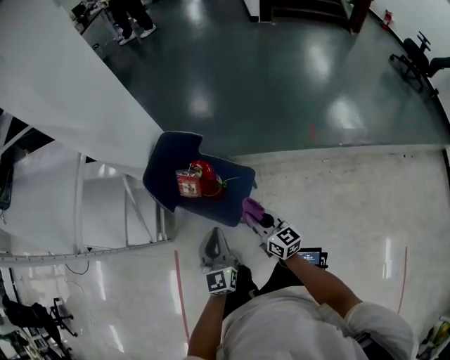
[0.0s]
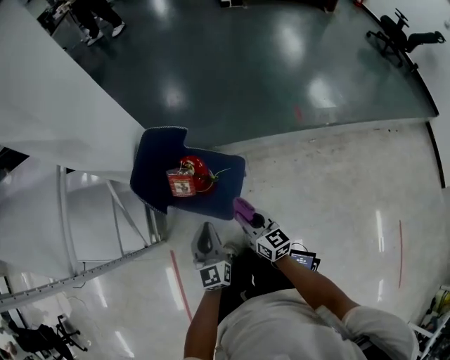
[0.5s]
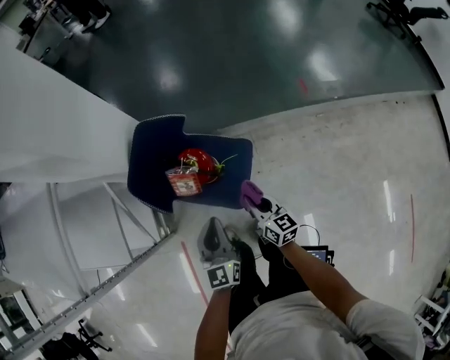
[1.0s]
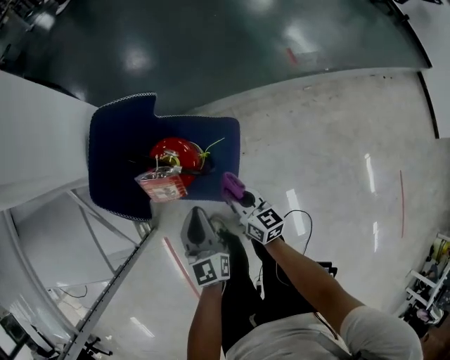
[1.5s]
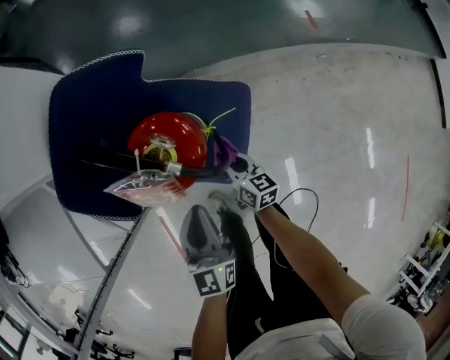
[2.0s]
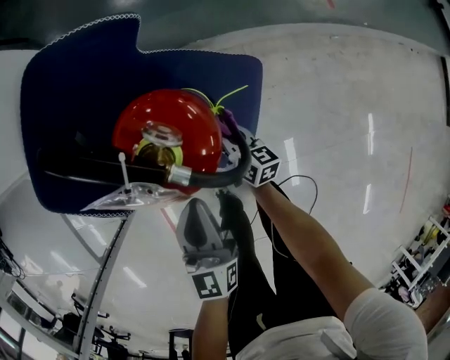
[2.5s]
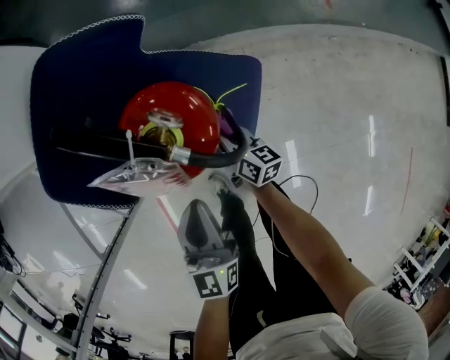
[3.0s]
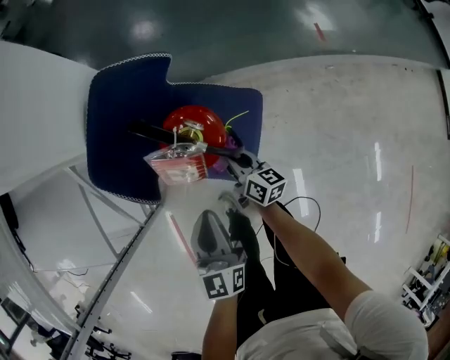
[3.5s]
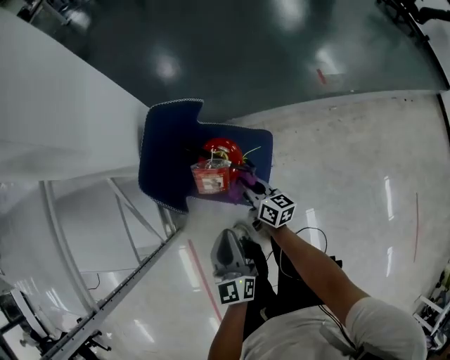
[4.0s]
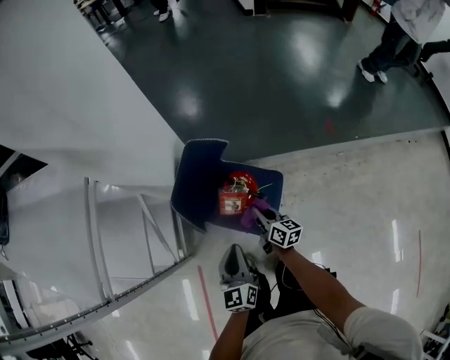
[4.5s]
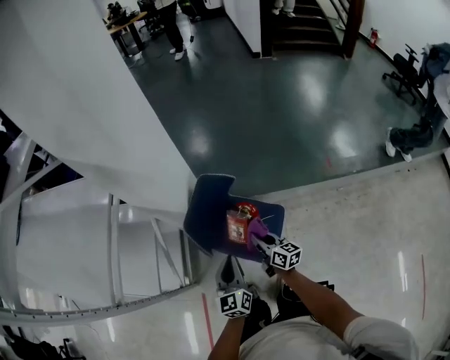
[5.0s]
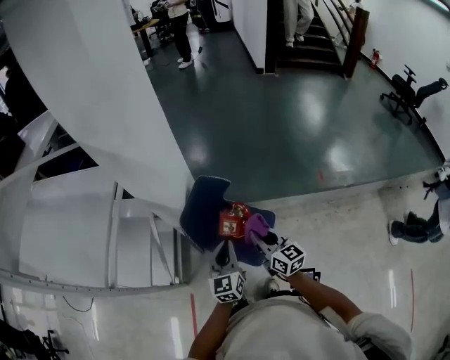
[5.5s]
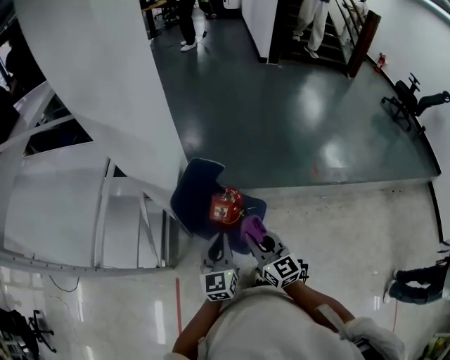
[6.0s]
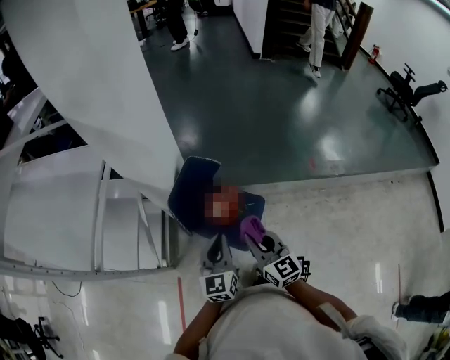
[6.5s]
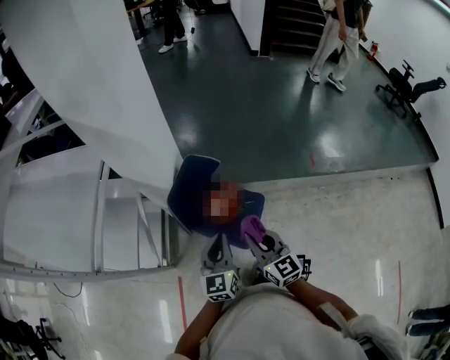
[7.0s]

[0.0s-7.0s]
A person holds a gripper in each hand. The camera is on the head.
0.0s to 2.0s: The right gripper heads downward, covering about 35 cm, and changes its angle by some 30 degrees. Meanwhile the left gripper goes some 25 cm downward and forward.
2.0s to 3.5s: The grippers both shift upward by approximately 5 cm.
3.5s to 5.0s: The grippers both shift upward by approximately 20 cm.
5.0s to 7.0s: The right gripper heads upward and backward, covering some 20 cm, and rotates some 30 degrees, while the left gripper heads upward, covering roughly 10 cm.

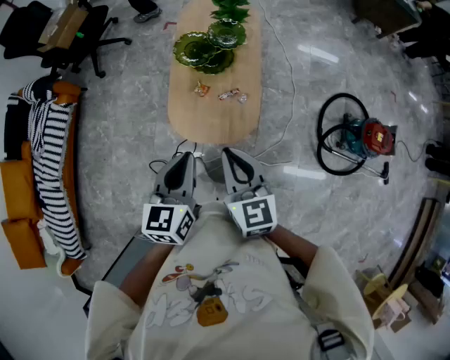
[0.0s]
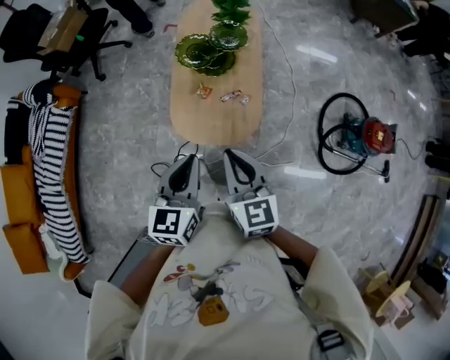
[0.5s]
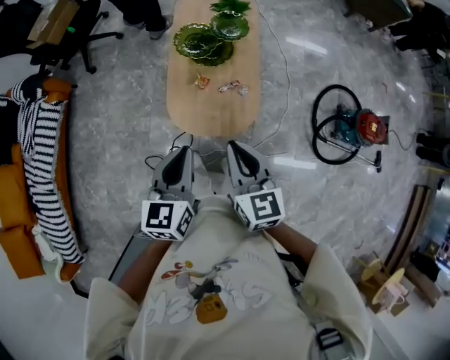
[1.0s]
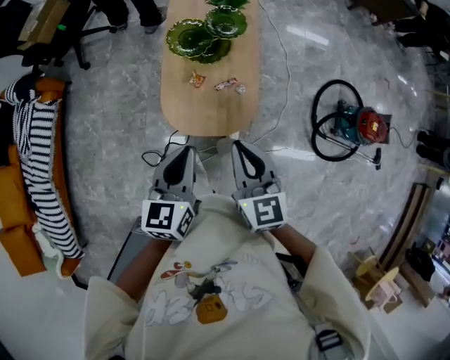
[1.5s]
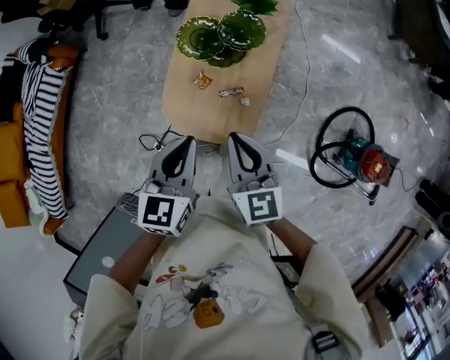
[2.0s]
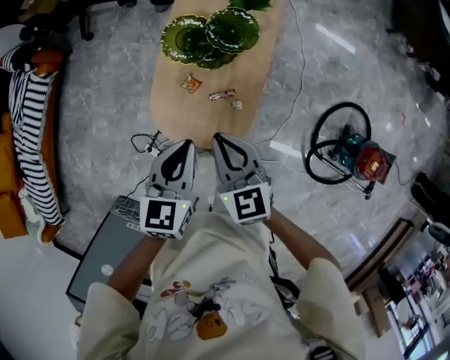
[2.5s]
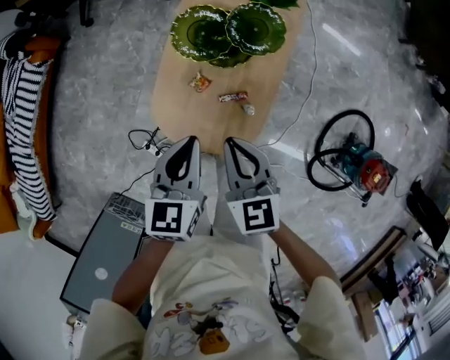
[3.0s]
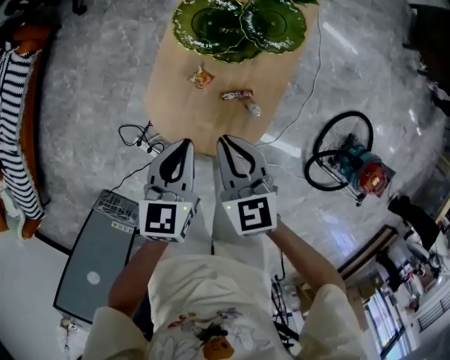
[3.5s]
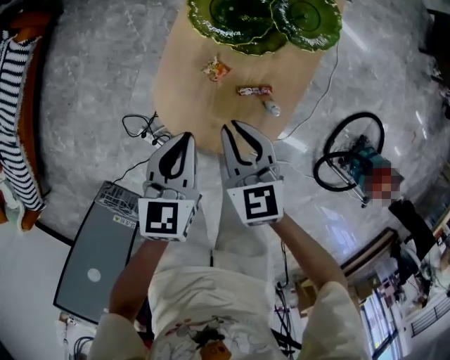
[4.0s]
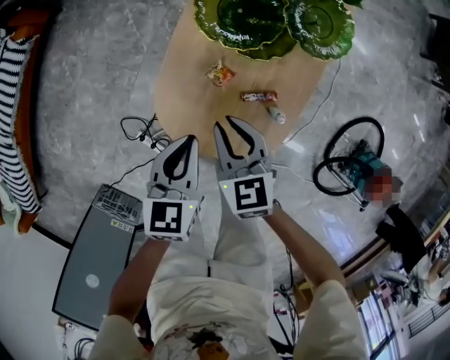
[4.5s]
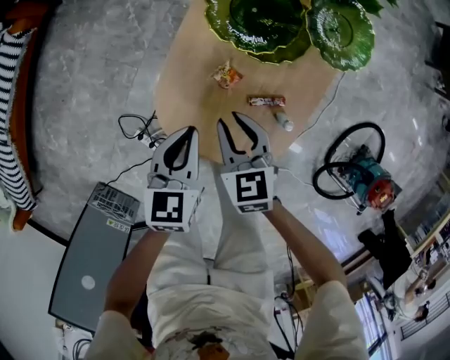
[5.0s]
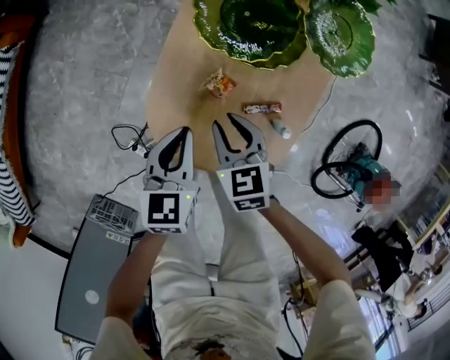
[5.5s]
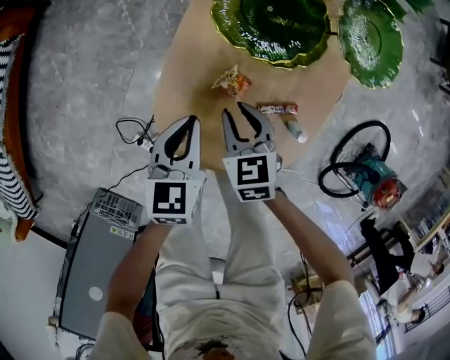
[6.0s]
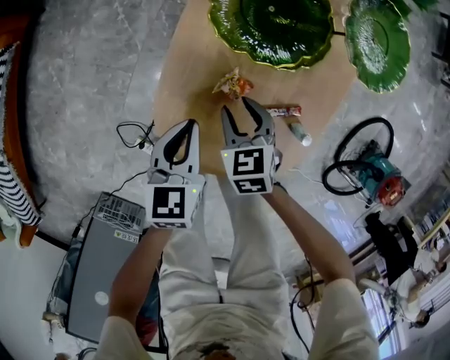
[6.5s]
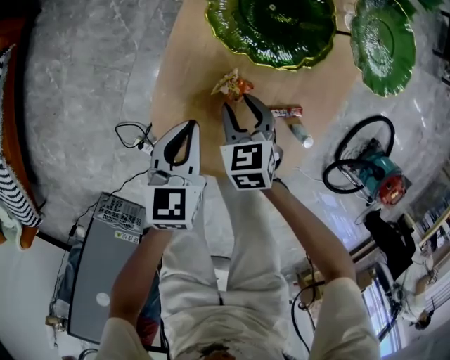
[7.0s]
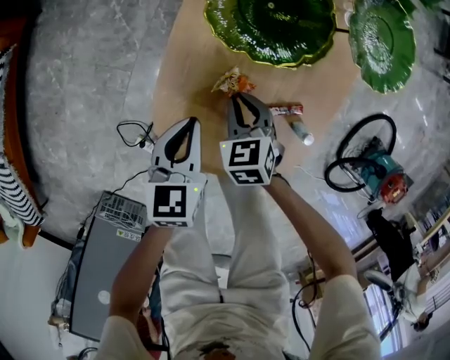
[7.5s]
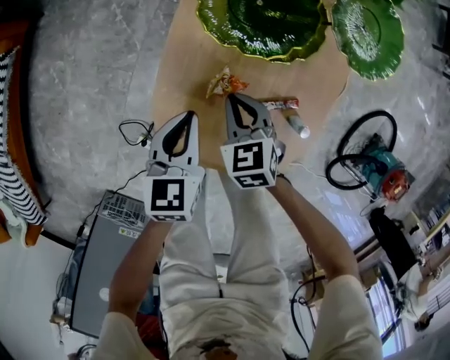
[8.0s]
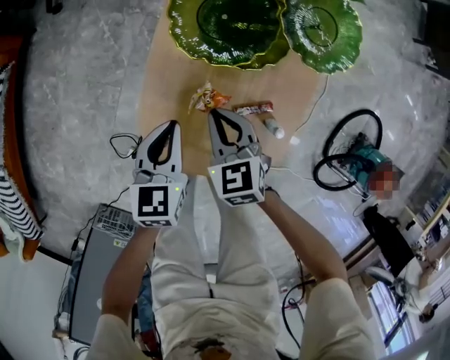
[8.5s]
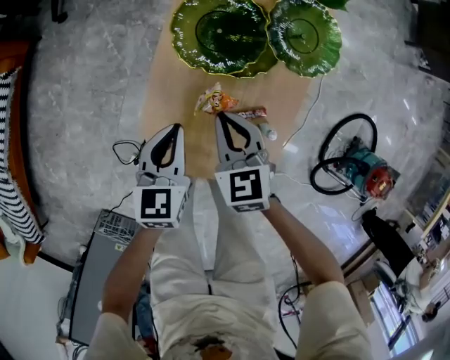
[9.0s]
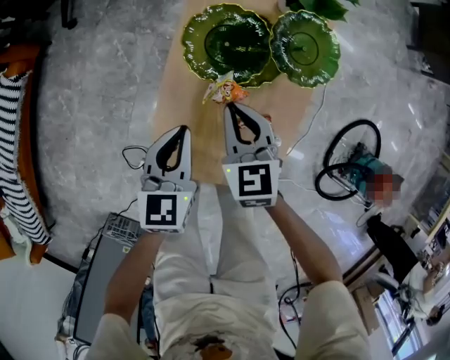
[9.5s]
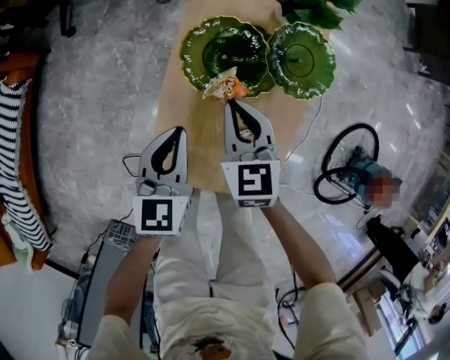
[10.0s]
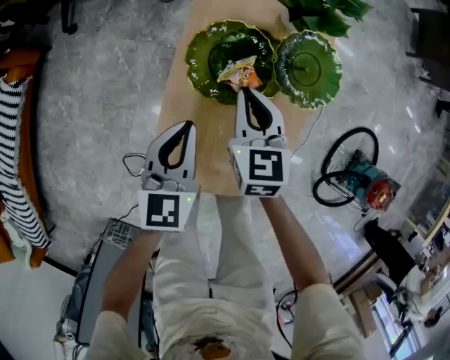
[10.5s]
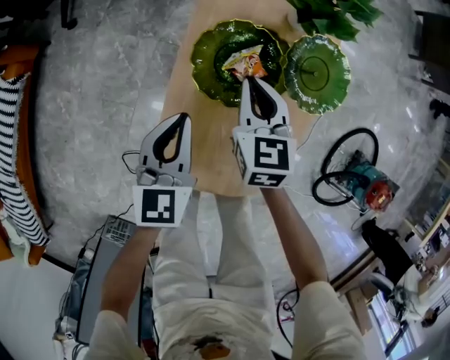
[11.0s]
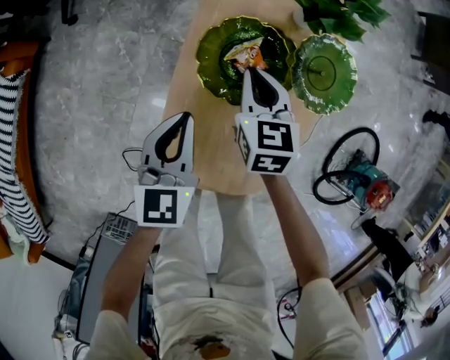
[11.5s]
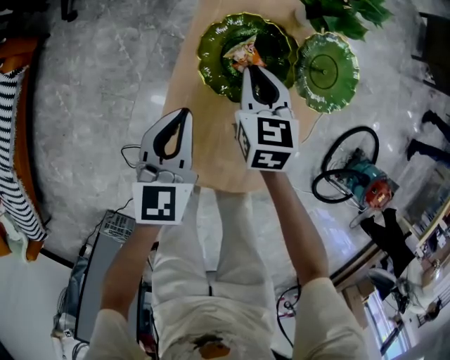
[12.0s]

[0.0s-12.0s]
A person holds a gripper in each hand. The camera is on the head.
0.0s to 2.0s: The grippers both shift forward by about 15 cm.
2.0s to 4.0s: Both grippers travel together downward, about 25 cm. The right gripper changes its angle by about 20 degrees.
4.0s to 6.0s: Both grippers move downward, approximately 20 cm.
8.0s to 10.0s: Both grippers travel together upward and forward, approximately 20 cm. The right gripper swivels roughly 20 degrees.
10.0s to 12.0s: The left gripper ends up roughly 5 cm from where it was, while the right gripper shifts some 10 cm forward and downward.

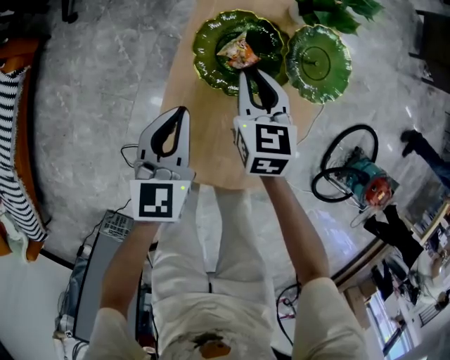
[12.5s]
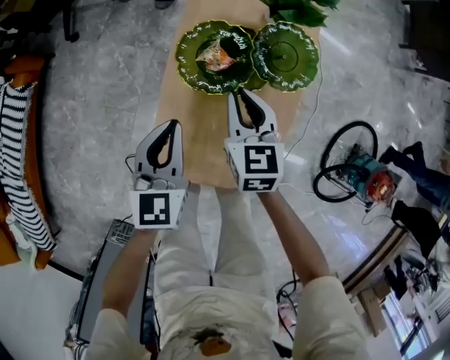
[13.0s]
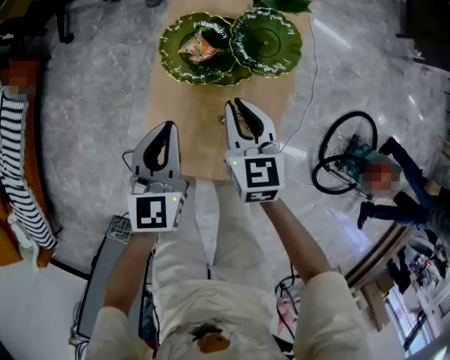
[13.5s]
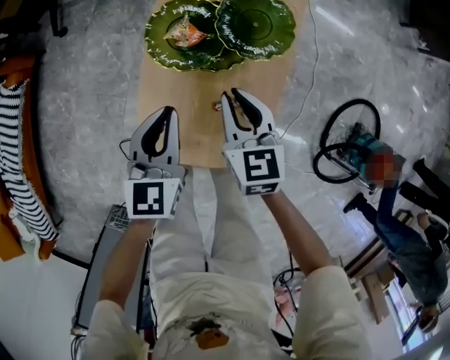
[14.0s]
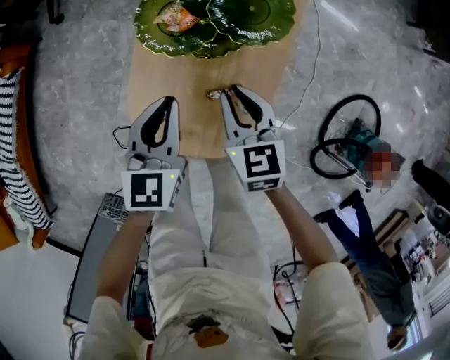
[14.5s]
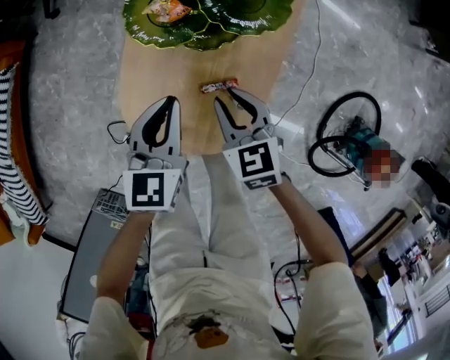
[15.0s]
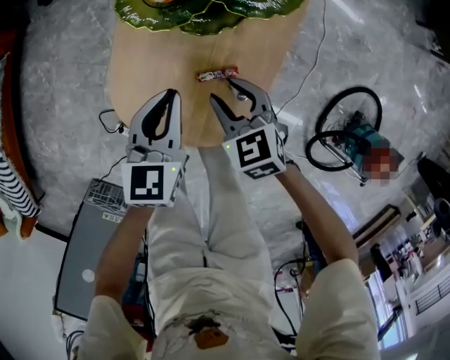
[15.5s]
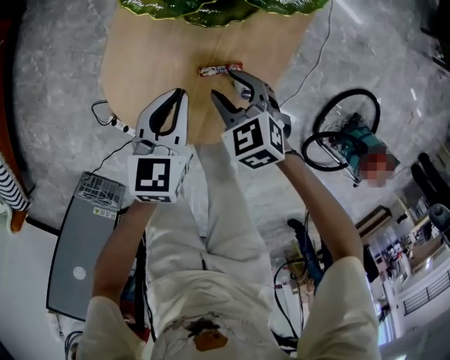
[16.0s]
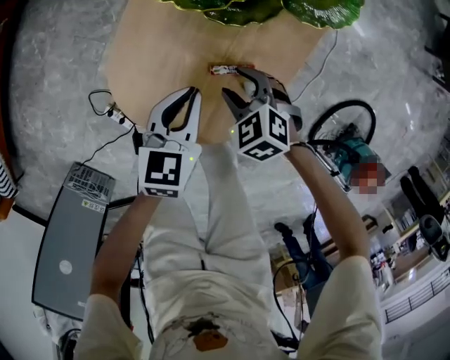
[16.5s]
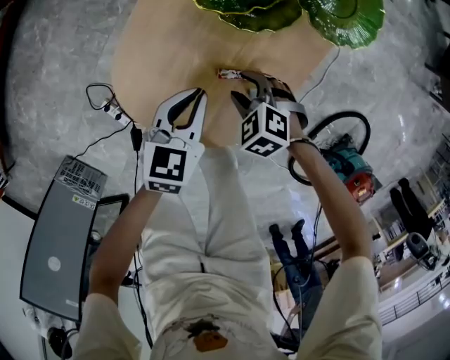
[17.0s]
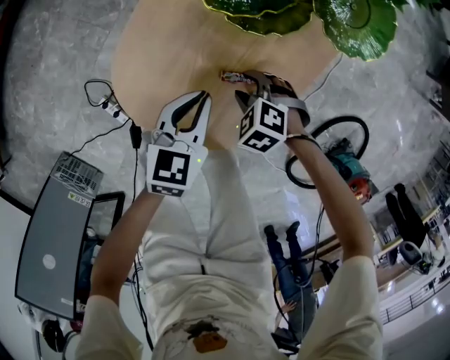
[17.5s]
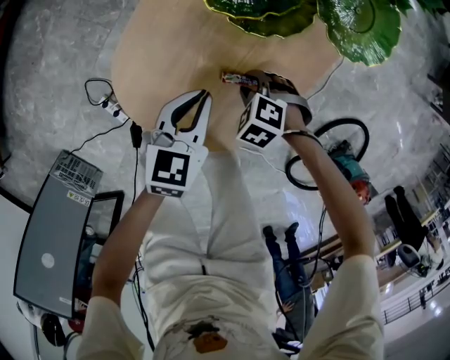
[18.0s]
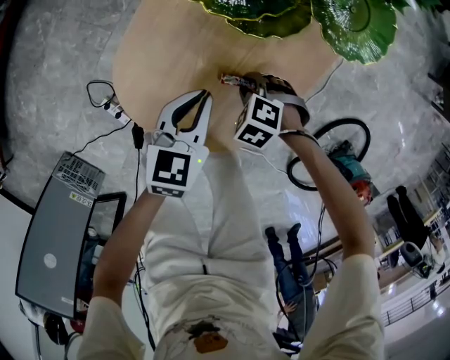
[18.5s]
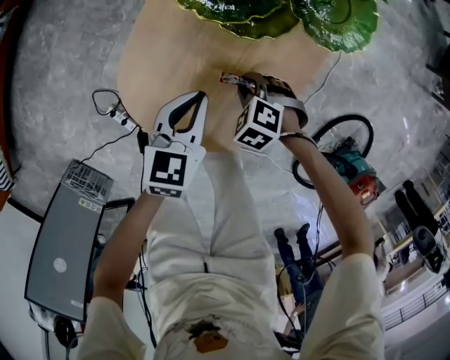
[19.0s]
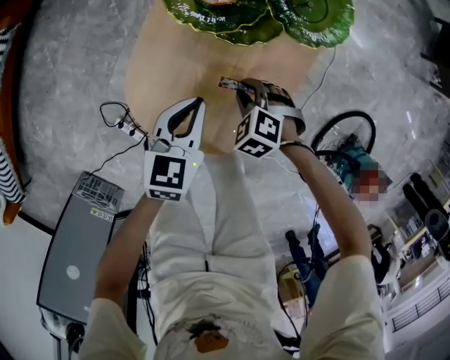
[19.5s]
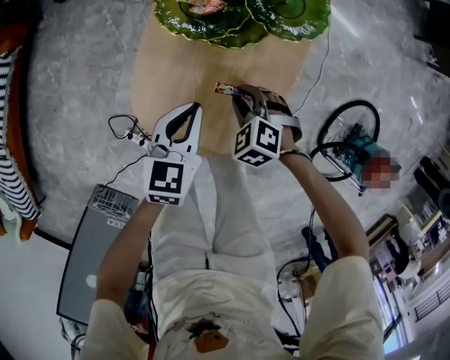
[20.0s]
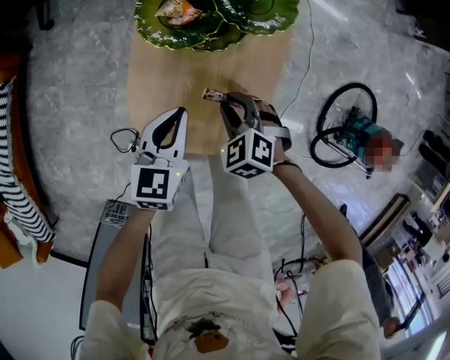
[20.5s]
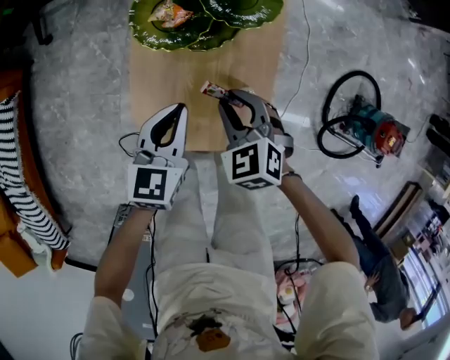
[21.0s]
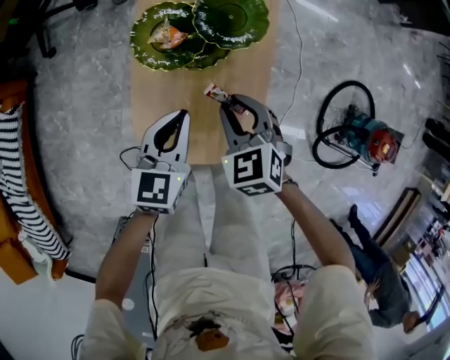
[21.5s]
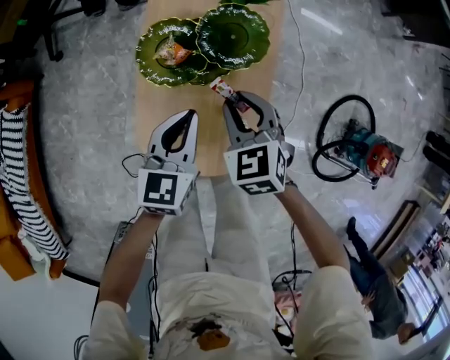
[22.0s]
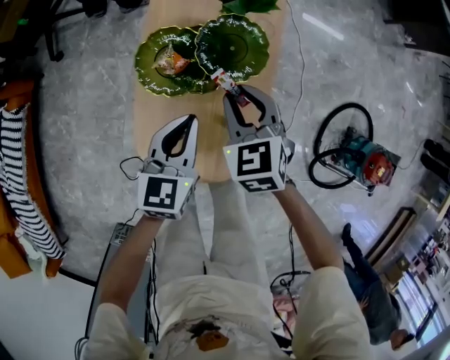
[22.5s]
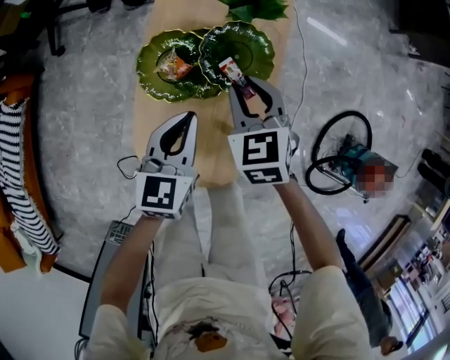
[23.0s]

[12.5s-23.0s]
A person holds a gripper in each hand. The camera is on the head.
12.5s to 14.5s: The right gripper goes about 15 cm backward and to the right. The left gripper goes approximately 15 cm to the right and backward.
14.5s to 16.5s: The left gripper goes about 15 cm downward and backward. The right gripper goes approximately 20 cm downward, swivels approximately 50 degrees, and opens up.
16.5s to 19.0s: The right gripper is displaced downward by approximately 5 cm, changes its angle by about 20 degrees, and closes up.
19.0s to 21.0s: The right gripper shifts some 25 cm upward, and swivels roughly 50 degrees, while the left gripper travels upward by some 15 cm.
21.0s to 23.0s: The left gripper travels forward by some 10 cm. Meanwhile the right gripper travels forward by roughly 20 cm.
